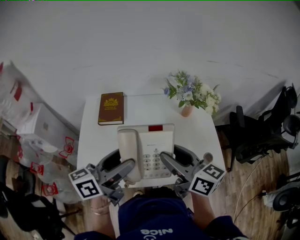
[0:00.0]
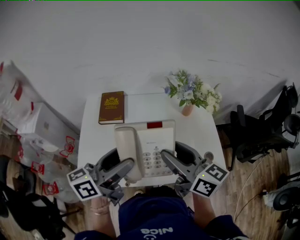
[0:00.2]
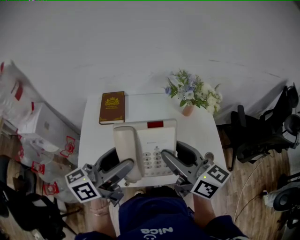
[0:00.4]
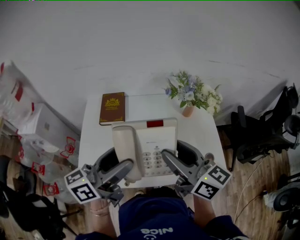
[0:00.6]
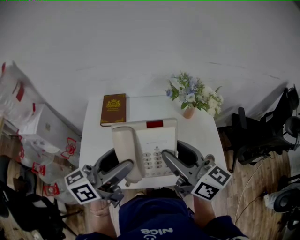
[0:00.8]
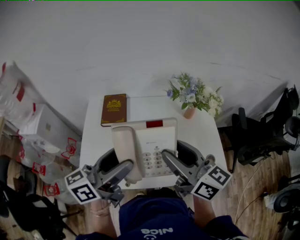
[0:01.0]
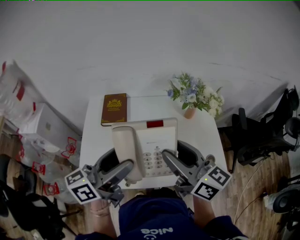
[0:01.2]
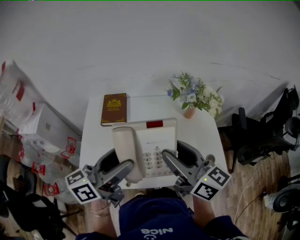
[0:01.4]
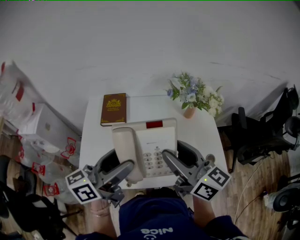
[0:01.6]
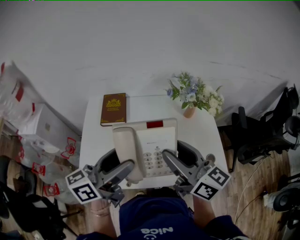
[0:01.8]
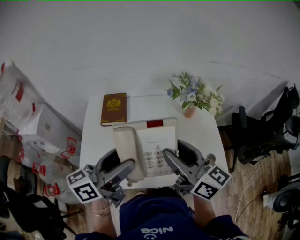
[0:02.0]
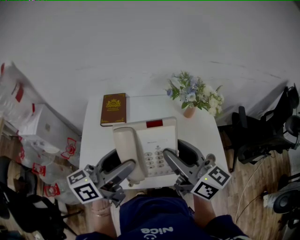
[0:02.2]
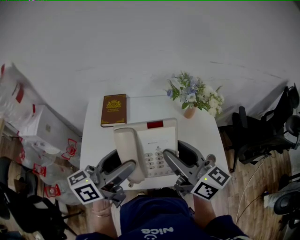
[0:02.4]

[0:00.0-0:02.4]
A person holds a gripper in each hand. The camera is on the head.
0:00.0 to 0:01.2: The grippers move only a little.
0:01.2 to 0:02.4: Both grippers stay about where they are.

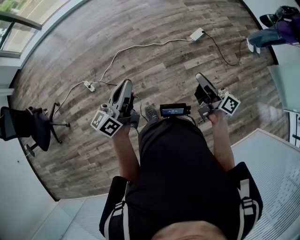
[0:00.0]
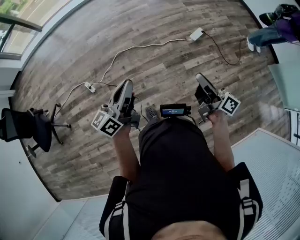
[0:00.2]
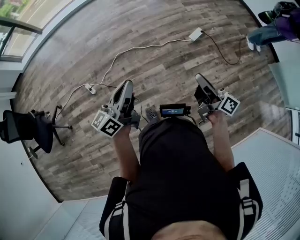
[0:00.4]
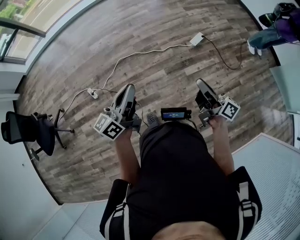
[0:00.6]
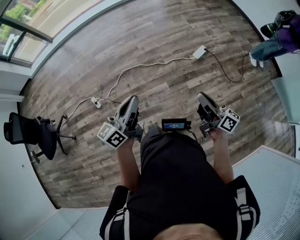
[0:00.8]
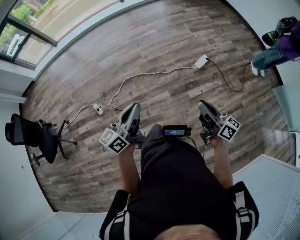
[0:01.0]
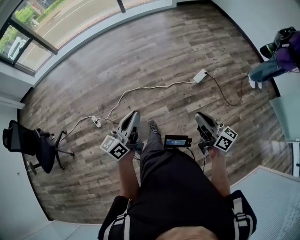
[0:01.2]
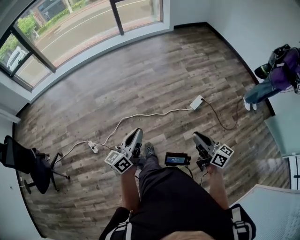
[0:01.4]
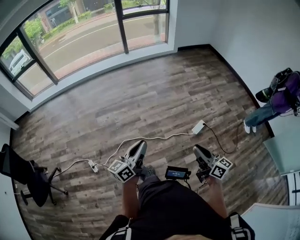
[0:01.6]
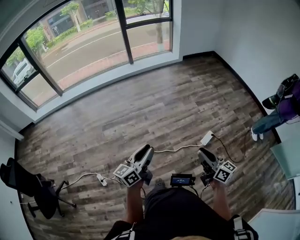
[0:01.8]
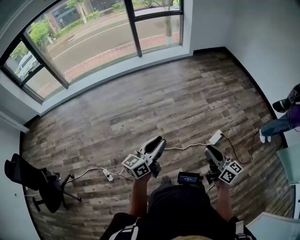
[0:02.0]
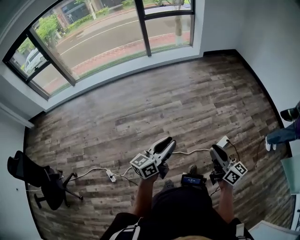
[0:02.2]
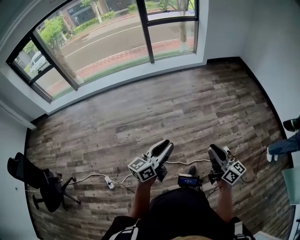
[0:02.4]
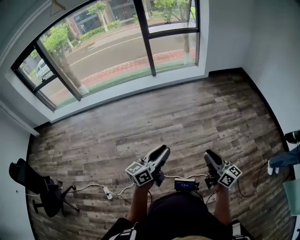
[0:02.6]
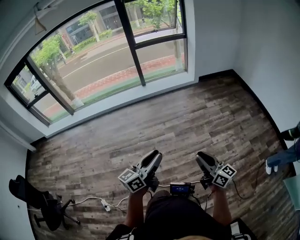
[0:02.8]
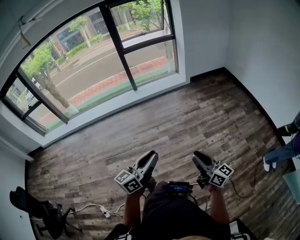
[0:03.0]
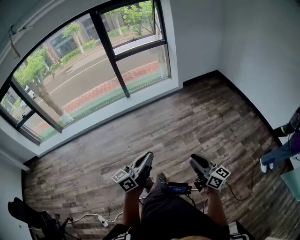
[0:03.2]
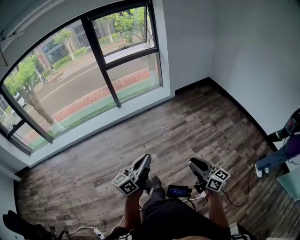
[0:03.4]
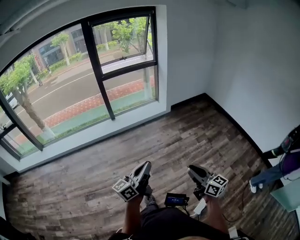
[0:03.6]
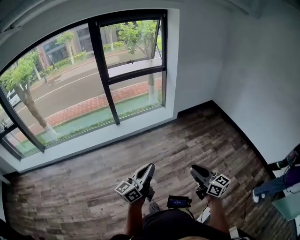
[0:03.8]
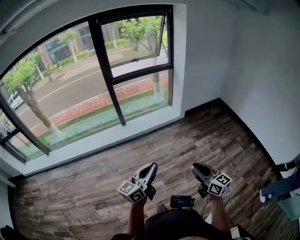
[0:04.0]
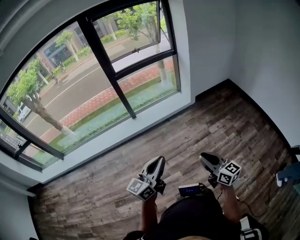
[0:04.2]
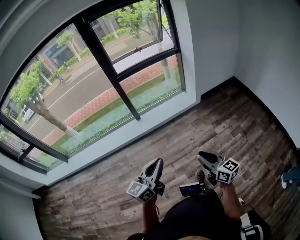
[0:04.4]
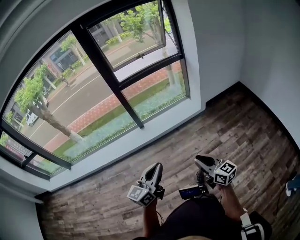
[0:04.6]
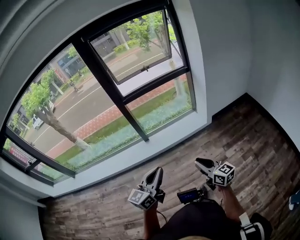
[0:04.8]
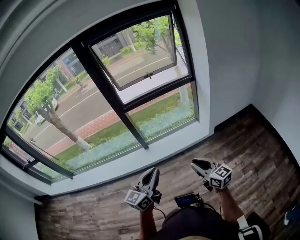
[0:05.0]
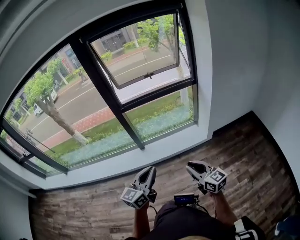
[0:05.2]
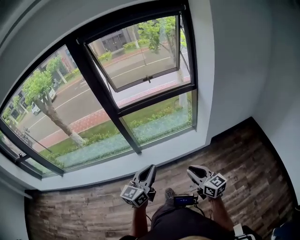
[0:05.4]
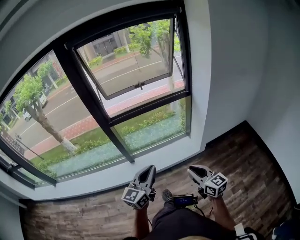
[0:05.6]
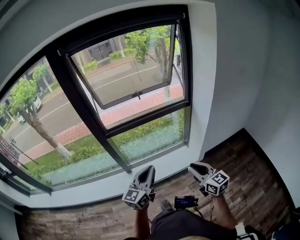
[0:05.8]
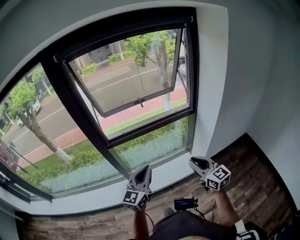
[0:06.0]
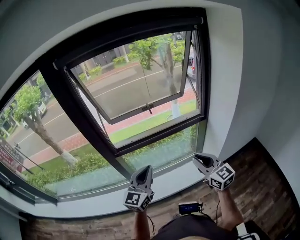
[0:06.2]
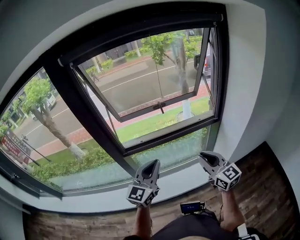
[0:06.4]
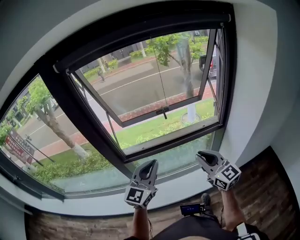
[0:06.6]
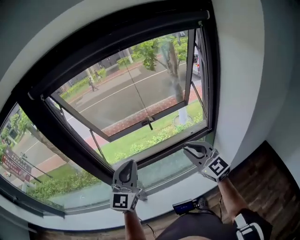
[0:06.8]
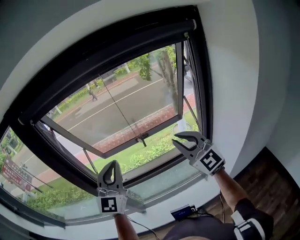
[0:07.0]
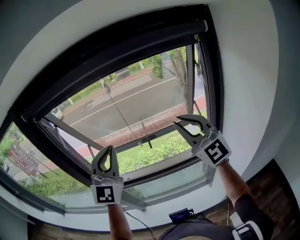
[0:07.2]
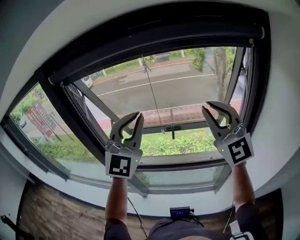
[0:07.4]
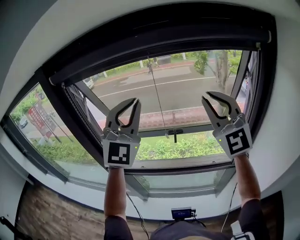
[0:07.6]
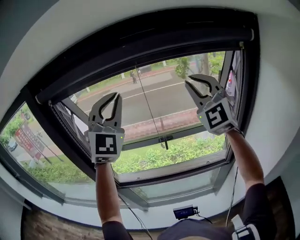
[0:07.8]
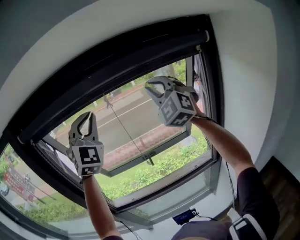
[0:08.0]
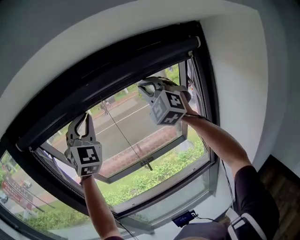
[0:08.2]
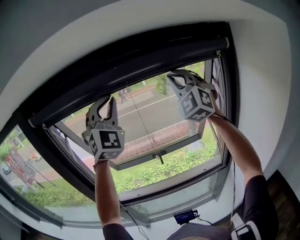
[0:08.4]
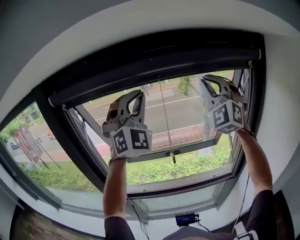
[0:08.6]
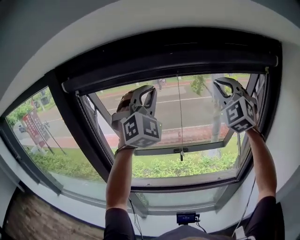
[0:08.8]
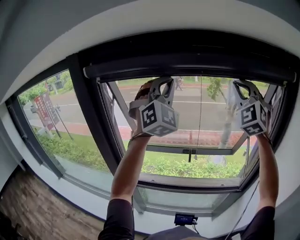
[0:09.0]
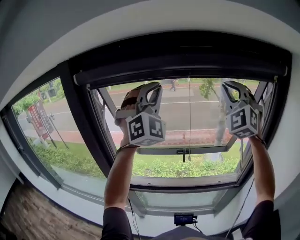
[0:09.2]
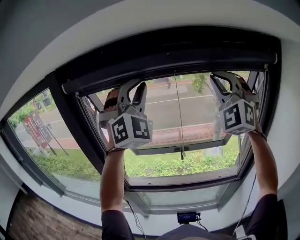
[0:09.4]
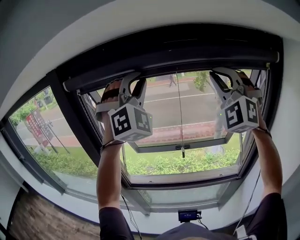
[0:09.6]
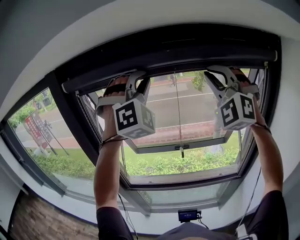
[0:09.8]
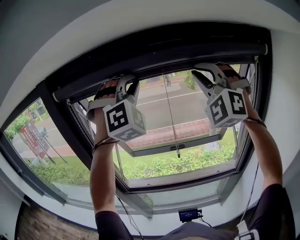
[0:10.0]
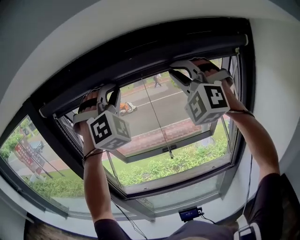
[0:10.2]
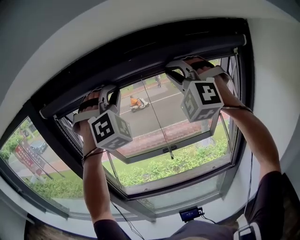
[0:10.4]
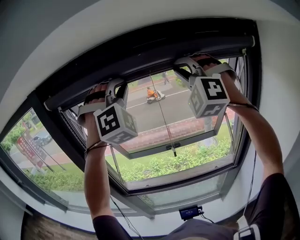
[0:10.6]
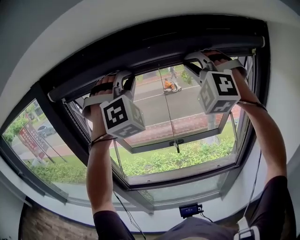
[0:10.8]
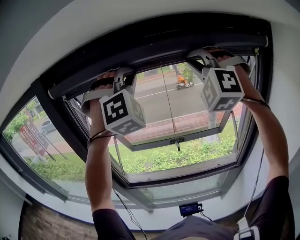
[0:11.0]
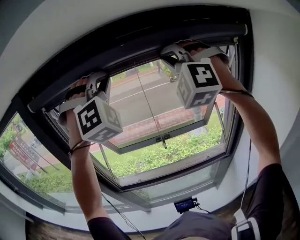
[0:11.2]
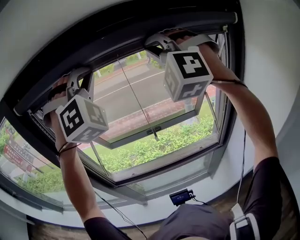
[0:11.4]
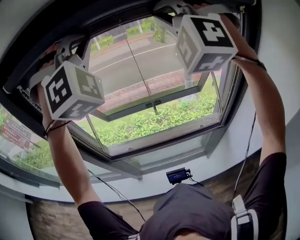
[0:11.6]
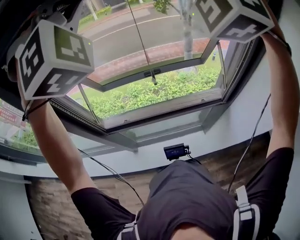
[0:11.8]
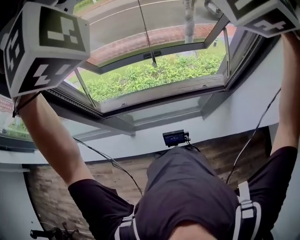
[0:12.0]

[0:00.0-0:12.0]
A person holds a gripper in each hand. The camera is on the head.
0:00.0 to 0:01.6: Both grippers move forward, roughly 25 cm. The right gripper changes its angle by about 20 degrees.
0:01.6 to 0:03.0: The pair of grippers is taken forward, approximately 40 cm.
0:03.0 to 0:04.4: The two grippers travel together, forward, some 50 cm. The left gripper closes.
0:04.4 to 0:06.0: The two grippers travel together, forward, approximately 70 cm. The left gripper turns by approximately 20 degrees.
0:06.0 to 0:07.6: The two grippers go some 50 cm forward and upward. The left gripper rolls clockwise, seen from behind, by about 60 degrees, while the right gripper rotates around the line of its fingers by roughly 50 degrees, counterclockwise from behind.
0:07.6 to 0:09.0: The right gripper goes some 15 cm upward and forward, and turns by approximately 30 degrees. The left gripper goes roughly 15 cm forward and upward, and swivels roughly 20 degrees.
0:09.0 to 0:10.4: The left gripper rotates some 30 degrees, while the right gripper is displaced to the left by some 5 cm, and rotates some 20 degrees.
0:10.4 to 0:12.0: The right gripper is displaced downward by some 5 cm.

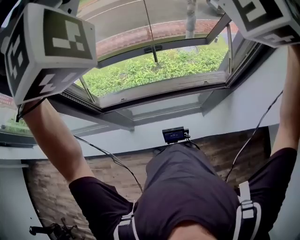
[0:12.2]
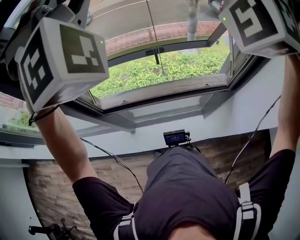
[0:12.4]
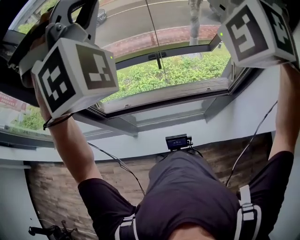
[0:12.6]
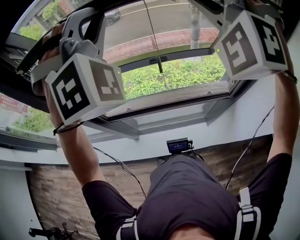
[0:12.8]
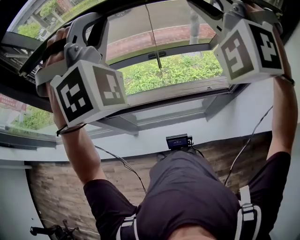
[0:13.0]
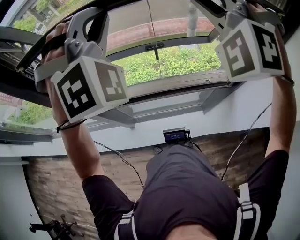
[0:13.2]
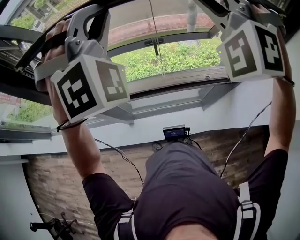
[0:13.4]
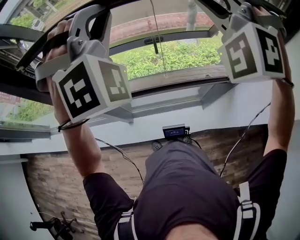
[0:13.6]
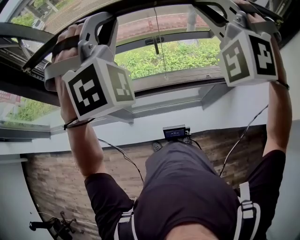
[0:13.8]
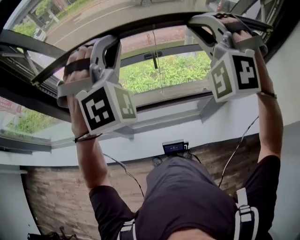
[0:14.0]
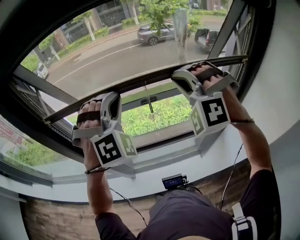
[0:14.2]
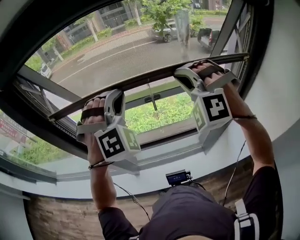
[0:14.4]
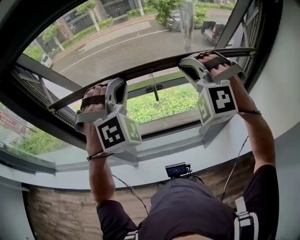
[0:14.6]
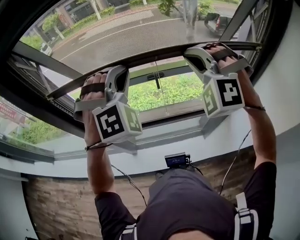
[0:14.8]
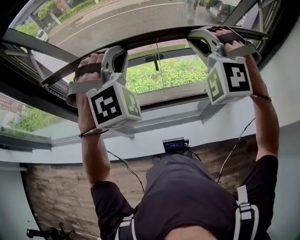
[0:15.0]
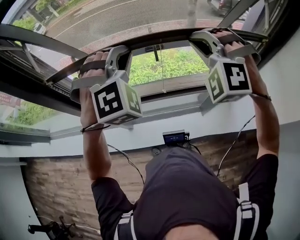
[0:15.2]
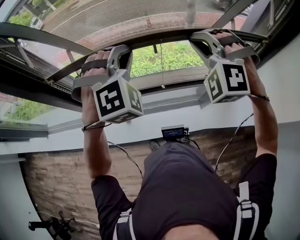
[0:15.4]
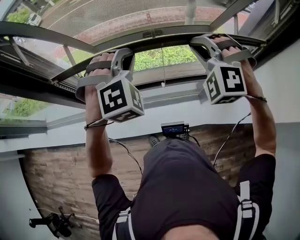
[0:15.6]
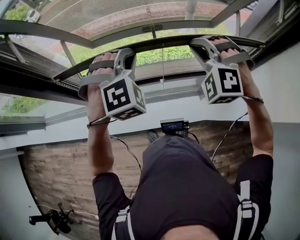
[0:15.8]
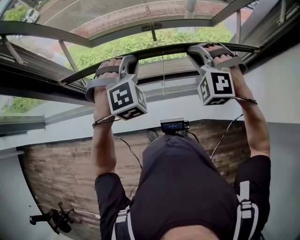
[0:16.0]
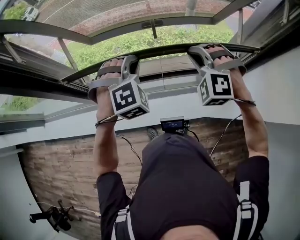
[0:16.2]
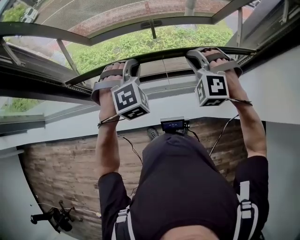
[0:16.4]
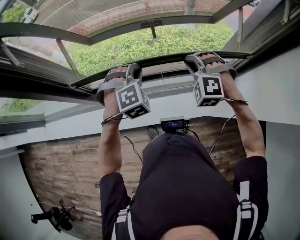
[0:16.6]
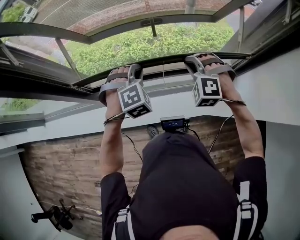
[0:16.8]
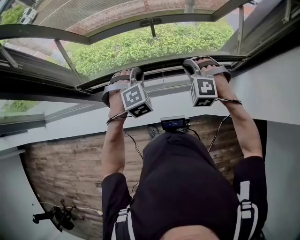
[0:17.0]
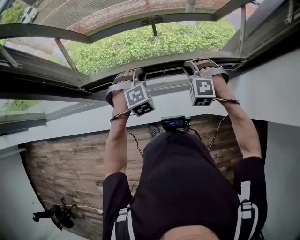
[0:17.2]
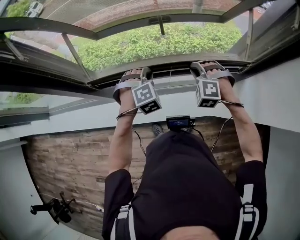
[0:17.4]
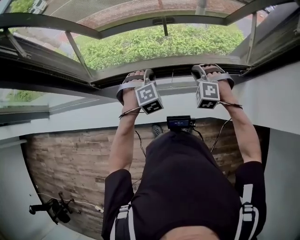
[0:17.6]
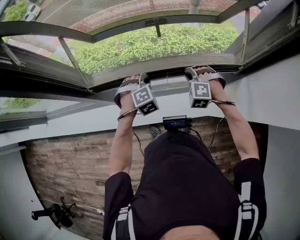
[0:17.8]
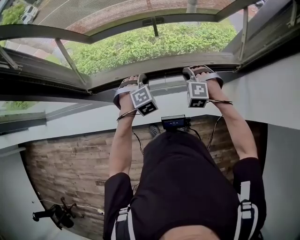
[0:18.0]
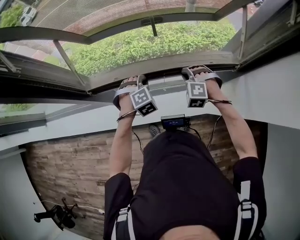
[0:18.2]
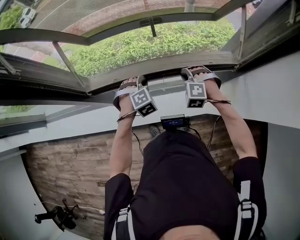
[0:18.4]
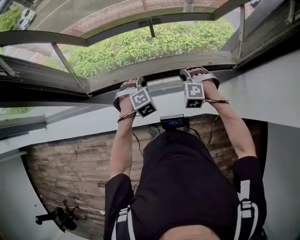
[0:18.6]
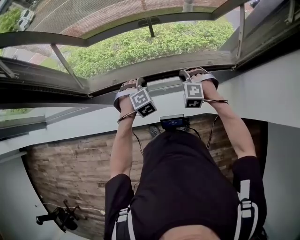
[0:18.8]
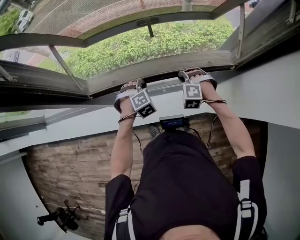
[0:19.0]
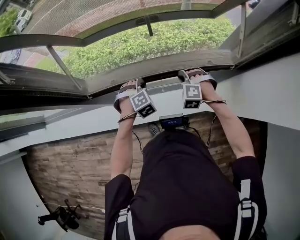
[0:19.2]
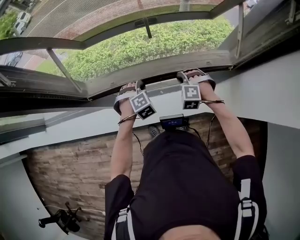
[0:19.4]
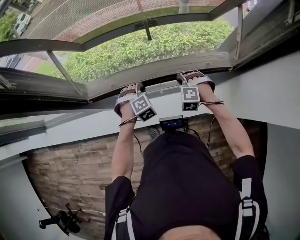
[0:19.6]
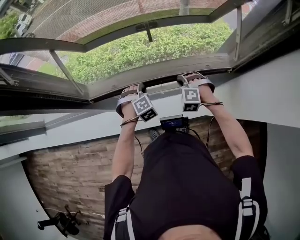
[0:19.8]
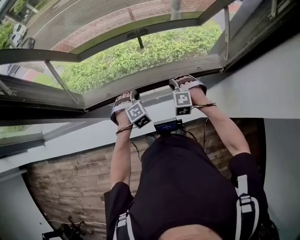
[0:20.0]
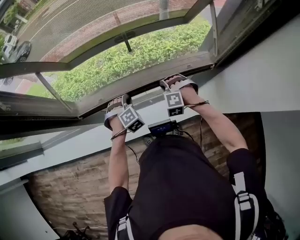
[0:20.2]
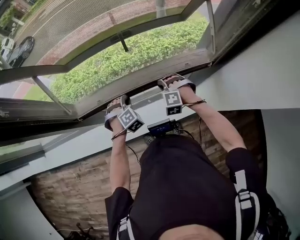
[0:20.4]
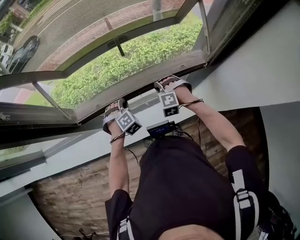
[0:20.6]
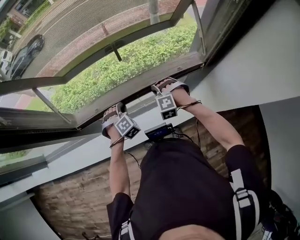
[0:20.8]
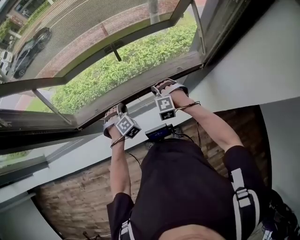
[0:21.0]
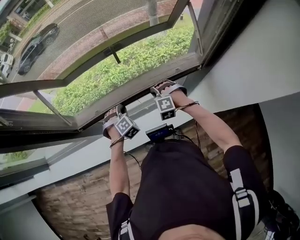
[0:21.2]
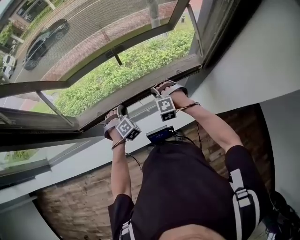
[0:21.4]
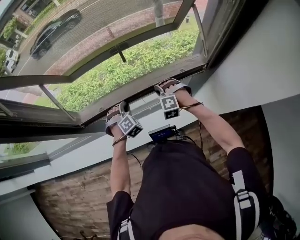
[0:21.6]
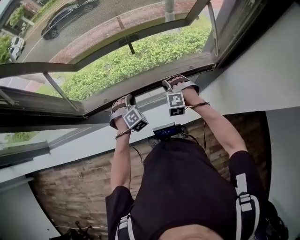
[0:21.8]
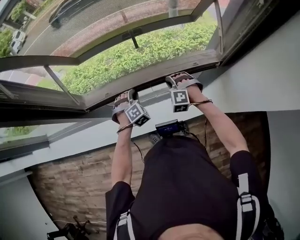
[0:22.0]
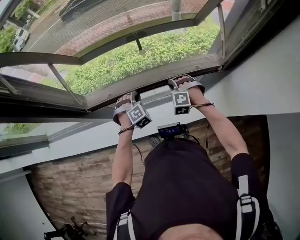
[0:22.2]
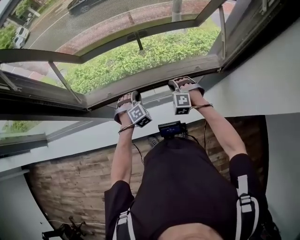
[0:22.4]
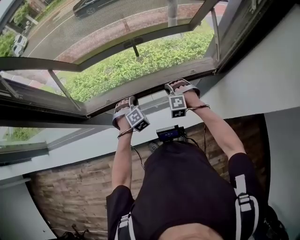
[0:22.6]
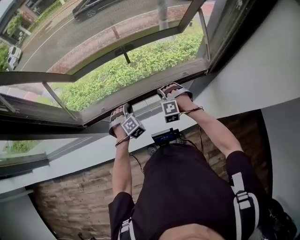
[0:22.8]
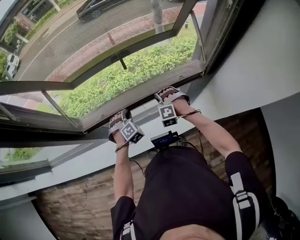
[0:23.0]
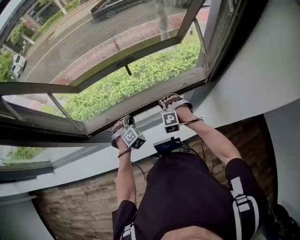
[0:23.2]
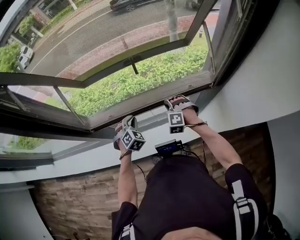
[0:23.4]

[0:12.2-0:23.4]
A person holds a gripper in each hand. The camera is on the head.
0:12.2 to 0:13.8: The grippers both shift downward by roughly 15 cm.
0:13.8 to 0:15.4: The two grippers go approximately 15 cm downward.
0:15.4 to 0:17.0: Both grippers move downward, roughly 25 cm. The right gripper turns by about 20 degrees. Meanwhile the left gripper turns by about 20 degrees.
0:17.0 to 0:18.6: The grippers both shift downward by approximately 10 cm.
0:18.6 to 0:21.8: The grippers make only small movements.
0:21.8 to 0:23.4: The left gripper rotates about 20 degrees.
